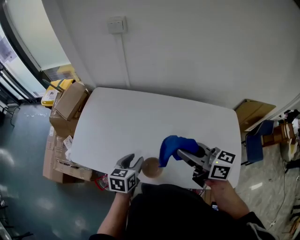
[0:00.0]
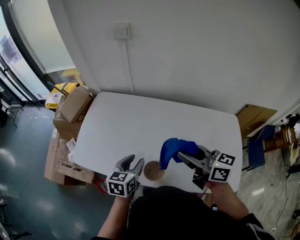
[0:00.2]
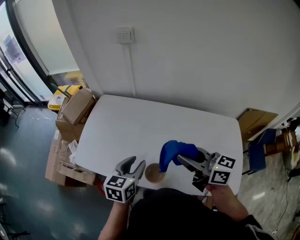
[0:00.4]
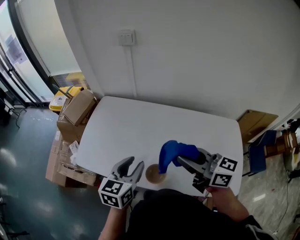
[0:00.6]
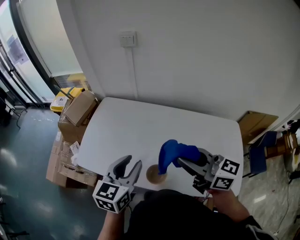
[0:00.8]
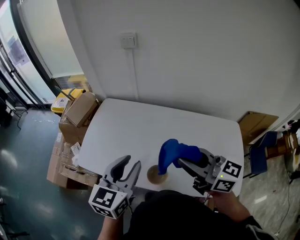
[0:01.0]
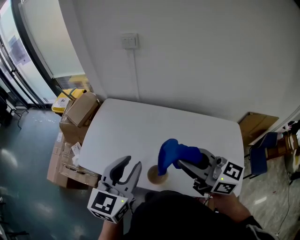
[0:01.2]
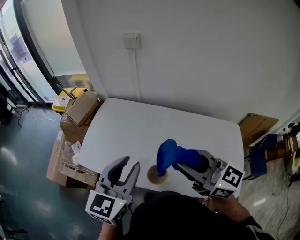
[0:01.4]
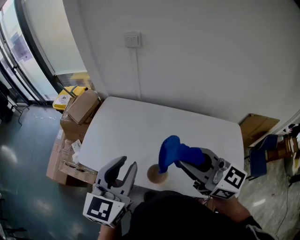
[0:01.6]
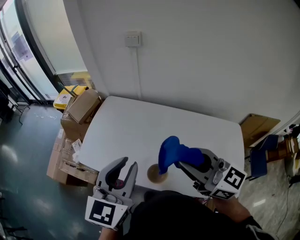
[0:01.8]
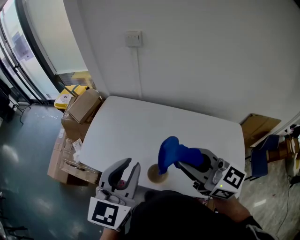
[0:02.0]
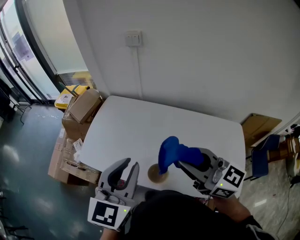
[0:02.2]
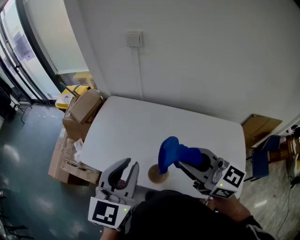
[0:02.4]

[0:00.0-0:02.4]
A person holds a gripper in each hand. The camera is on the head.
0:00.0 to 0:01.2: The left gripper heads upward, covering roughly 25 cm, and swivels approximately 30 degrees, while the right gripper shifts some 10 cm upward.
0:01.2 to 0:02.4: The grippers make only small movements.

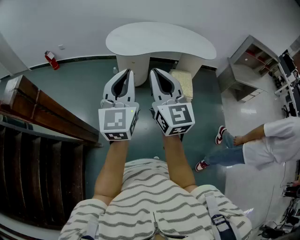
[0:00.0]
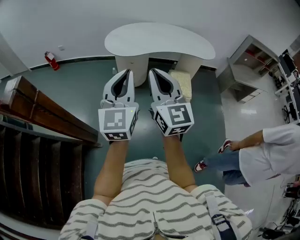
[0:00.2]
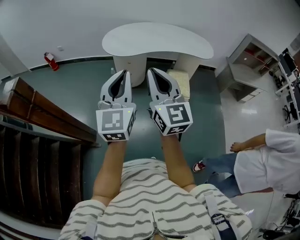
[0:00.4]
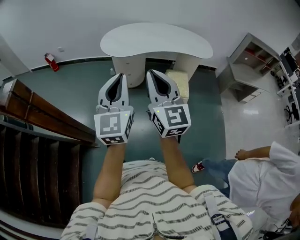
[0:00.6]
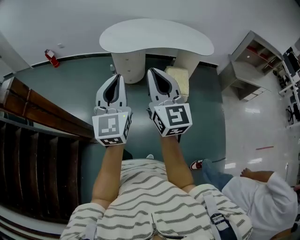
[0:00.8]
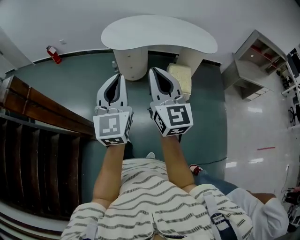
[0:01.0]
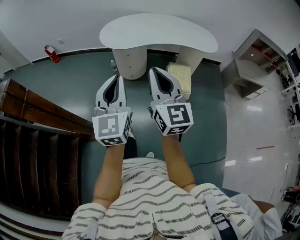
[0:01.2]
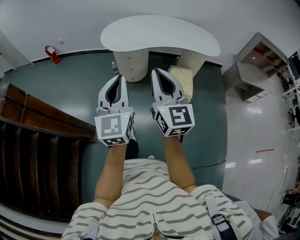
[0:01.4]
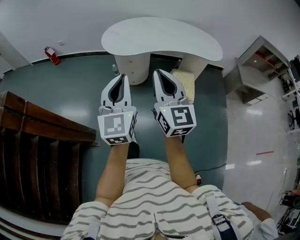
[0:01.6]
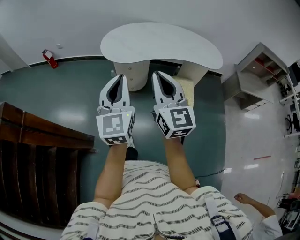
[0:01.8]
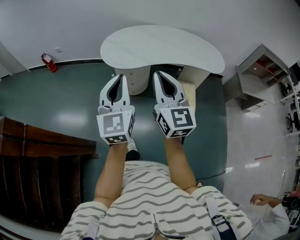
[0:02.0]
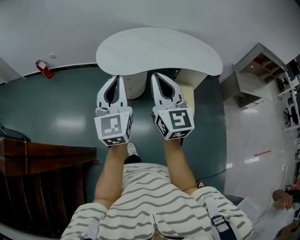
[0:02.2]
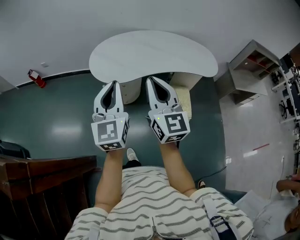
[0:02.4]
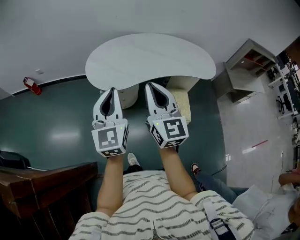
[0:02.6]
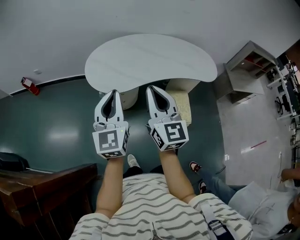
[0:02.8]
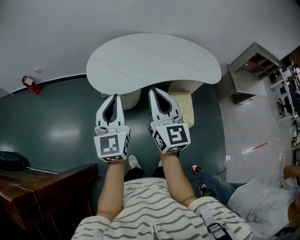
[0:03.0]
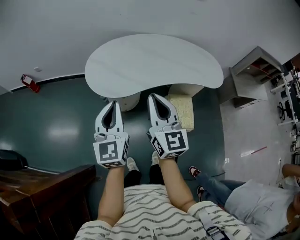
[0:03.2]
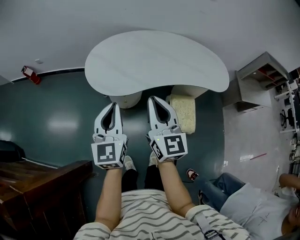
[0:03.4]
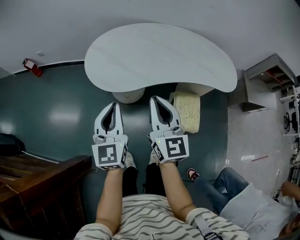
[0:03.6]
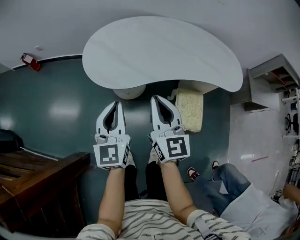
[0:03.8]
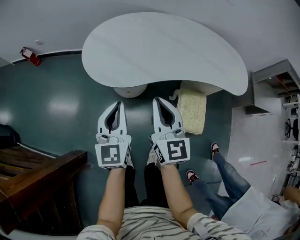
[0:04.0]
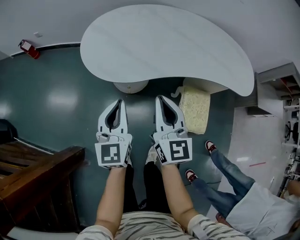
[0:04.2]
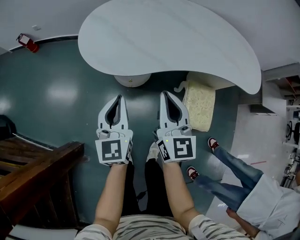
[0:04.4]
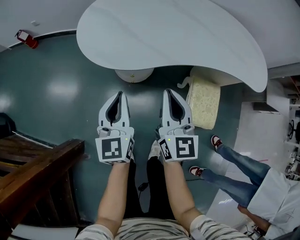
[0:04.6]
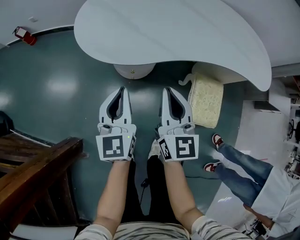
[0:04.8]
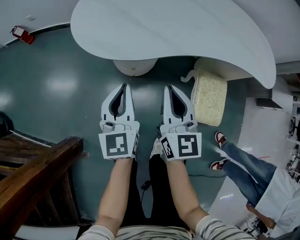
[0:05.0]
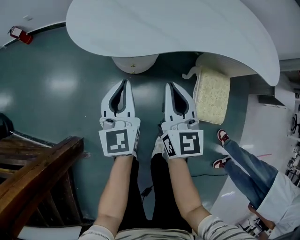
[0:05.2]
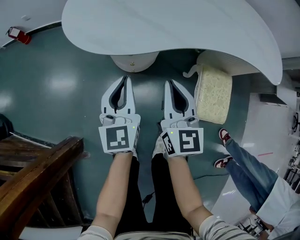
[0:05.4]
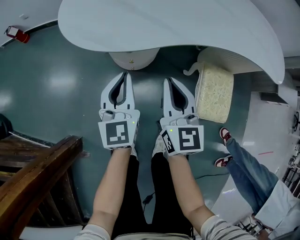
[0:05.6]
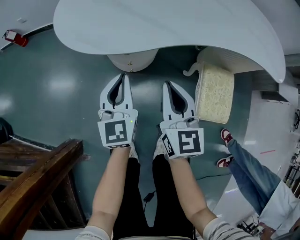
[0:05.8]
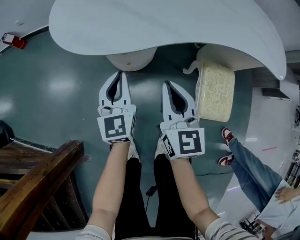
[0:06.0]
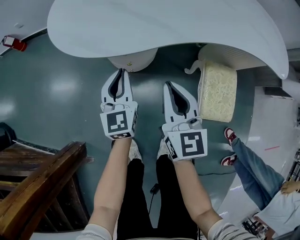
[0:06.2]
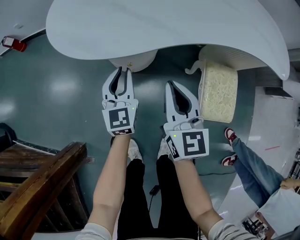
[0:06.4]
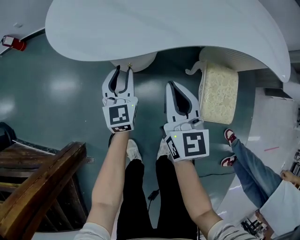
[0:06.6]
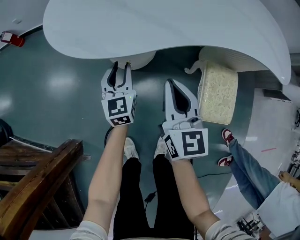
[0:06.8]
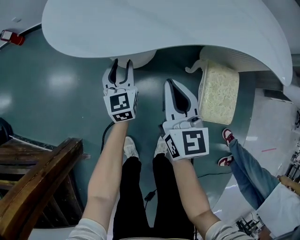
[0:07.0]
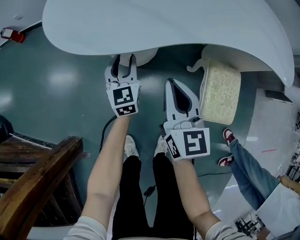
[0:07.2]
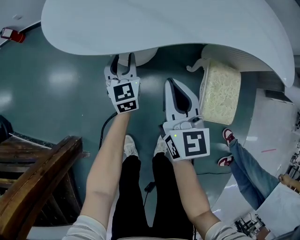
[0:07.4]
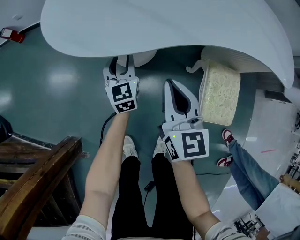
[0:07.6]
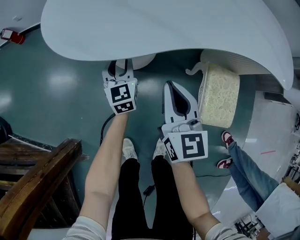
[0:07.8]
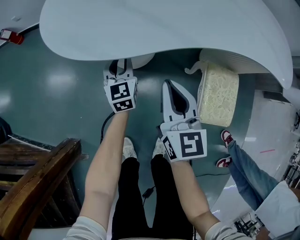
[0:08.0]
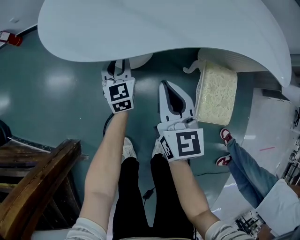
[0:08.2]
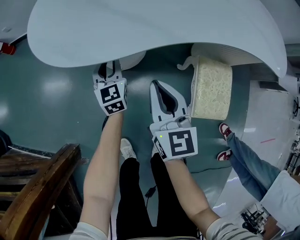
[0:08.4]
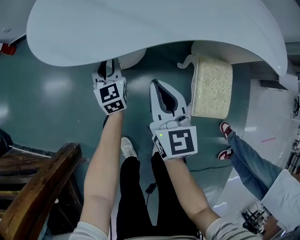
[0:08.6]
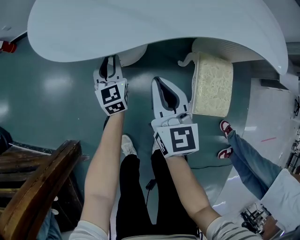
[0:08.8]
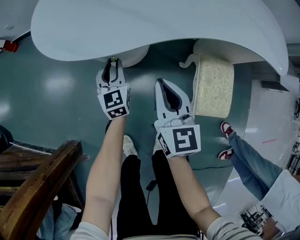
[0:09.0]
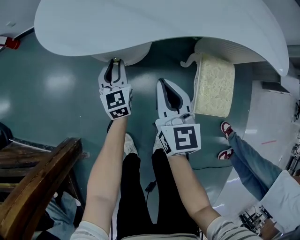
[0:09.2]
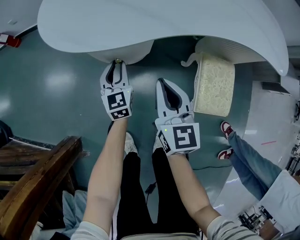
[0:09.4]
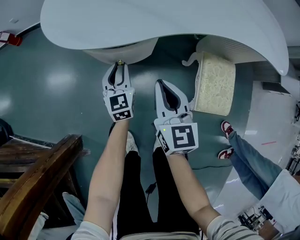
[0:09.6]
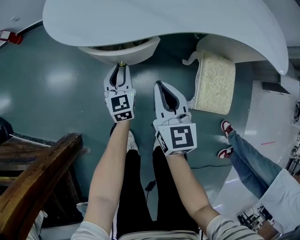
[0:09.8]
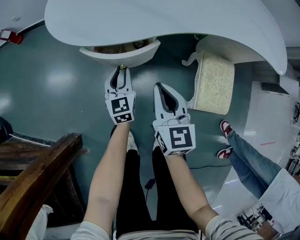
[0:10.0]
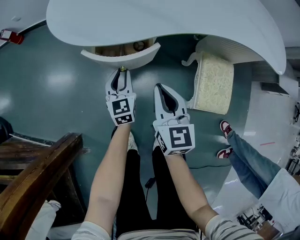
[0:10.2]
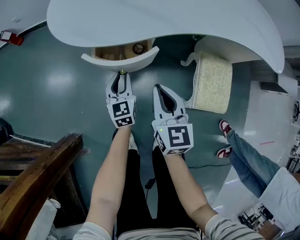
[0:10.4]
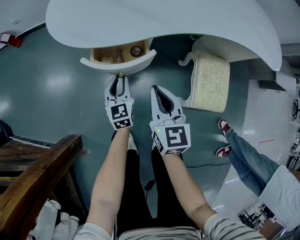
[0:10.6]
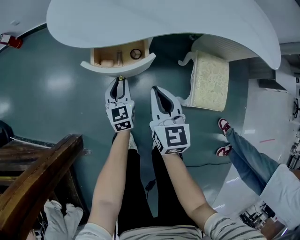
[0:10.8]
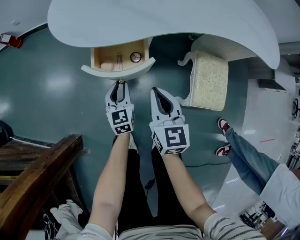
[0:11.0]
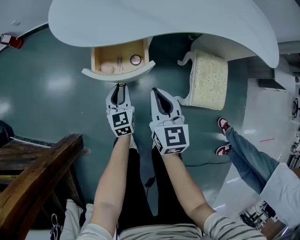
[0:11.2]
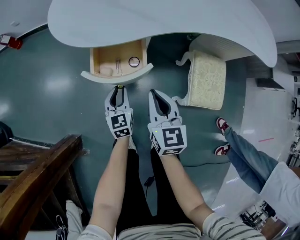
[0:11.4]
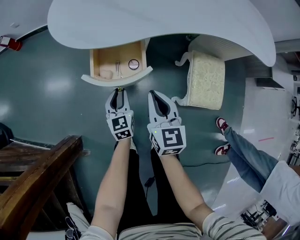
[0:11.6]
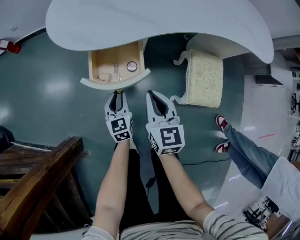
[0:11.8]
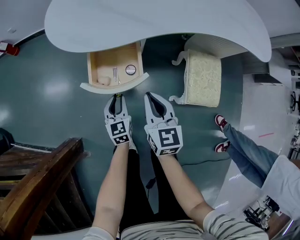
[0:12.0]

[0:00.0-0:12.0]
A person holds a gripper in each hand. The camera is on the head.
0:00.0 to 0:01.6: The right gripper heads to the right and forward, covering approximately 15 cm; the left gripper travels forward, to the right and downward by approximately 10 cm.
0:01.6 to 0:03.0: Both grippers move forward, approximately 30 cm.
0:03.0 to 0:04.4: Both grippers move downward, some 30 cm.
0:04.4 to 0:06.0: Both grippers travel together downward, approximately 20 cm.
0:06.0 to 0:07.6: The left gripper travels downward and forward by some 15 cm, and opens.
0:07.6 to 0:09.0: The grippers make only small movements.
0:09.0 to 0:10.4: The left gripper travels backward by about 10 cm. The right gripper shifts by some 5 cm.
0:10.4 to 0:12.0: The left gripper shifts approximately 10 cm backward.

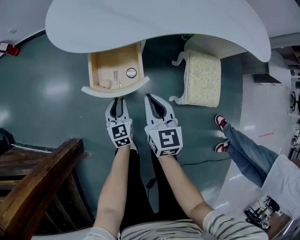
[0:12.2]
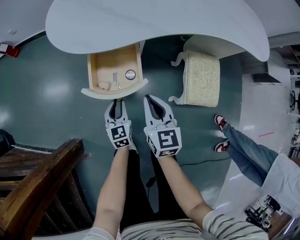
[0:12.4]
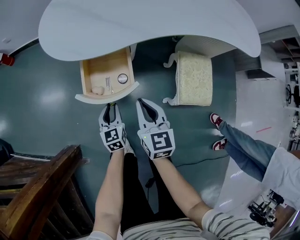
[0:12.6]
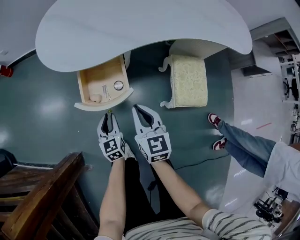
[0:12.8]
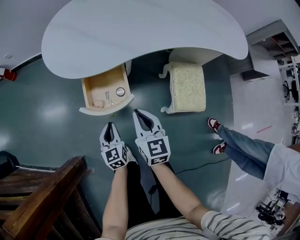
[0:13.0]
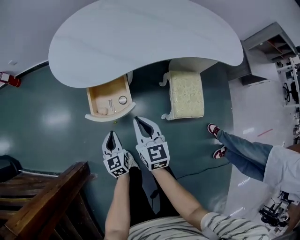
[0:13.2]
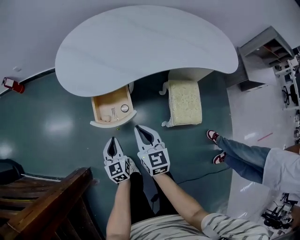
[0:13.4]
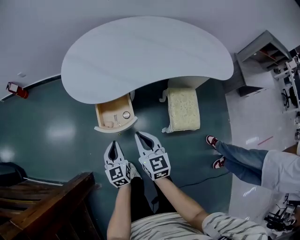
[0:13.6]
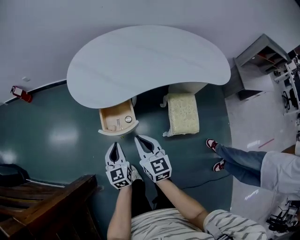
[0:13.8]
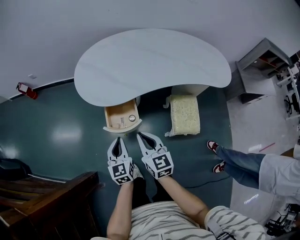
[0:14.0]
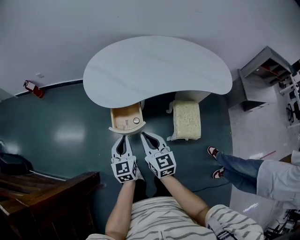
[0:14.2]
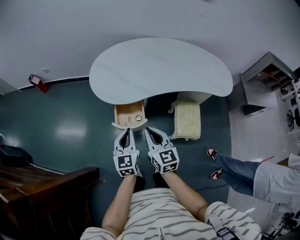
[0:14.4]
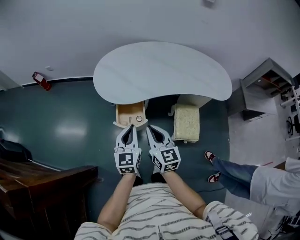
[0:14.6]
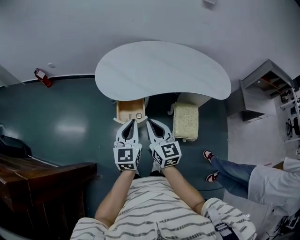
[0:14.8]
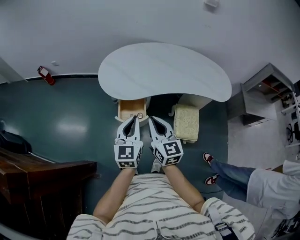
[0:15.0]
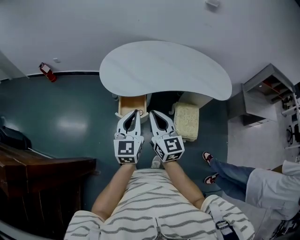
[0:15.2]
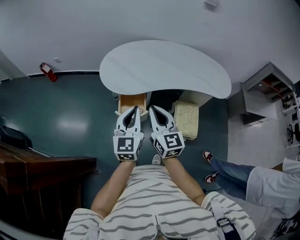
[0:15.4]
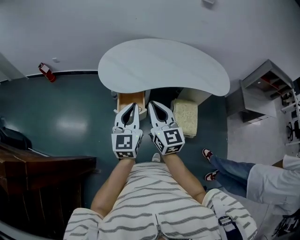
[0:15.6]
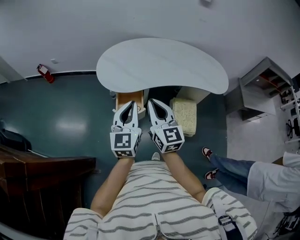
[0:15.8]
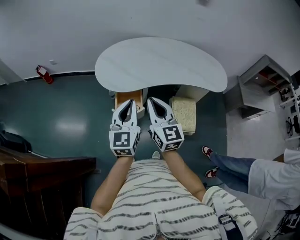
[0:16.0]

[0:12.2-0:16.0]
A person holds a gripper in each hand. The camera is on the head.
0:12.2 to 0:13.4: The grippers both shift upward by about 15 cm. The left gripper closes its fingers.
0:13.4 to 0:14.8: Both grippers move upward, some 30 cm.
0:14.8 to 0:16.0: The grippers both shift upward by some 10 cm.

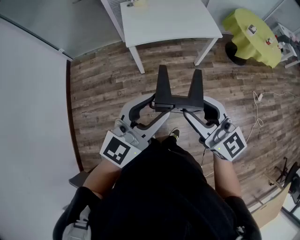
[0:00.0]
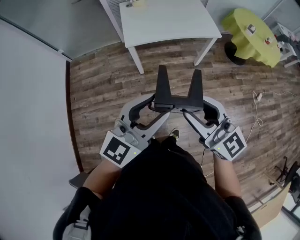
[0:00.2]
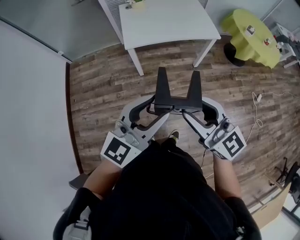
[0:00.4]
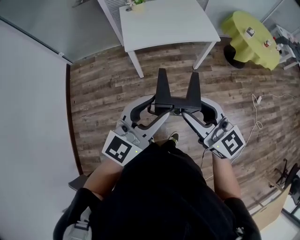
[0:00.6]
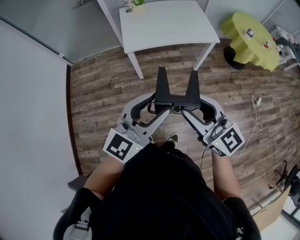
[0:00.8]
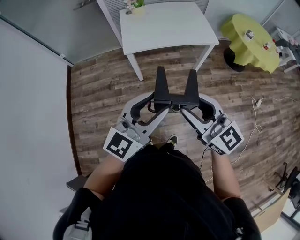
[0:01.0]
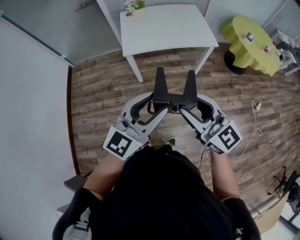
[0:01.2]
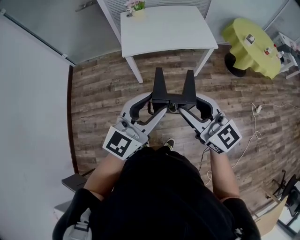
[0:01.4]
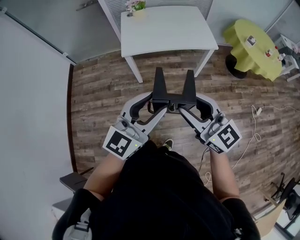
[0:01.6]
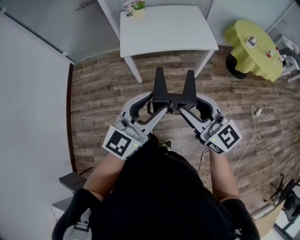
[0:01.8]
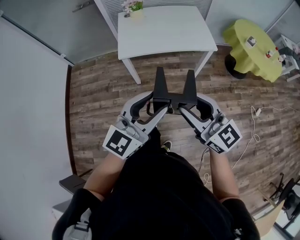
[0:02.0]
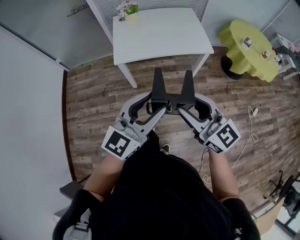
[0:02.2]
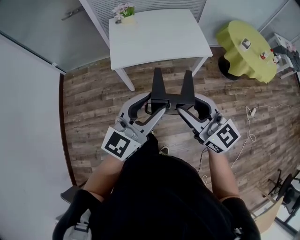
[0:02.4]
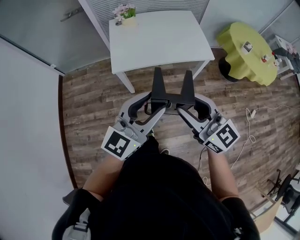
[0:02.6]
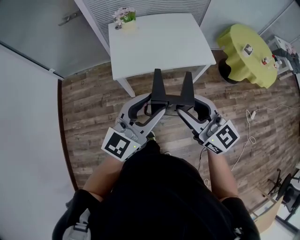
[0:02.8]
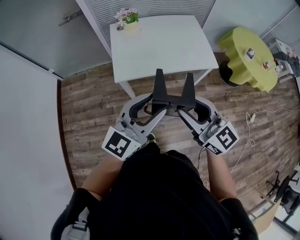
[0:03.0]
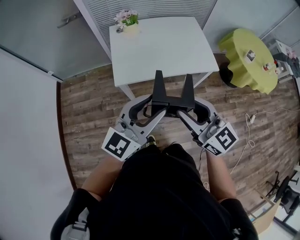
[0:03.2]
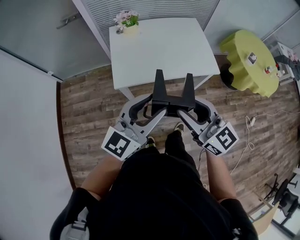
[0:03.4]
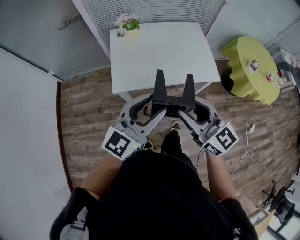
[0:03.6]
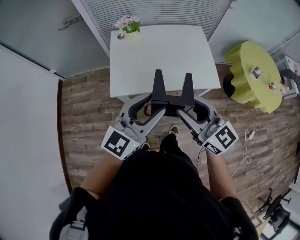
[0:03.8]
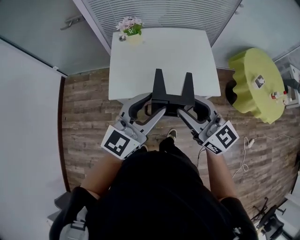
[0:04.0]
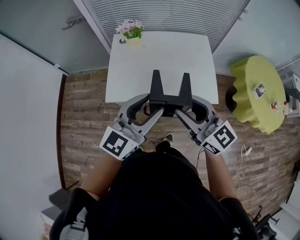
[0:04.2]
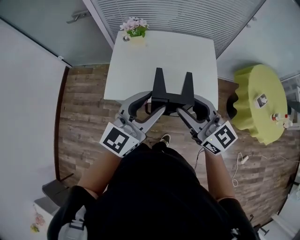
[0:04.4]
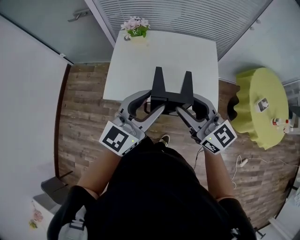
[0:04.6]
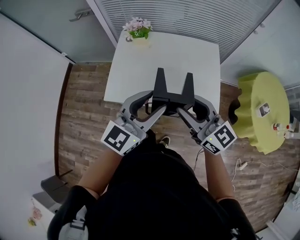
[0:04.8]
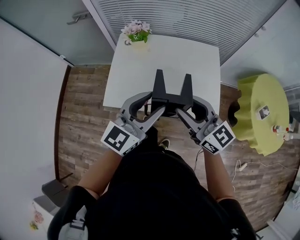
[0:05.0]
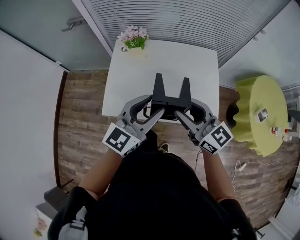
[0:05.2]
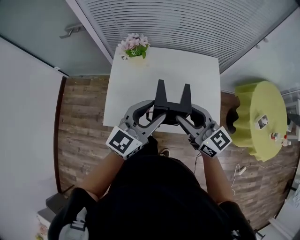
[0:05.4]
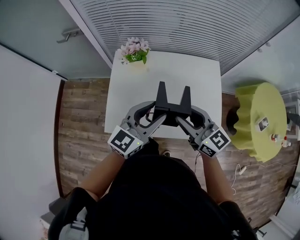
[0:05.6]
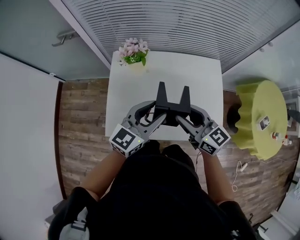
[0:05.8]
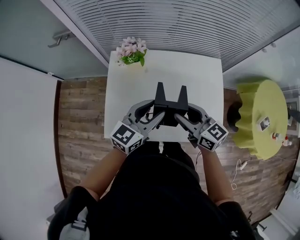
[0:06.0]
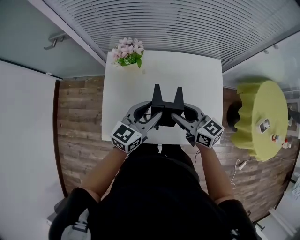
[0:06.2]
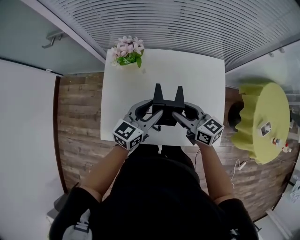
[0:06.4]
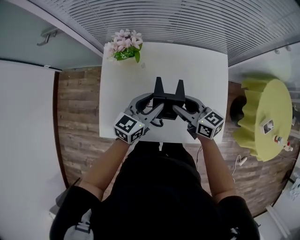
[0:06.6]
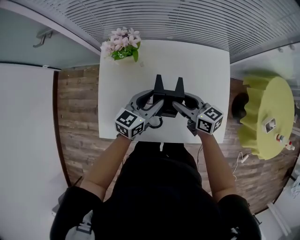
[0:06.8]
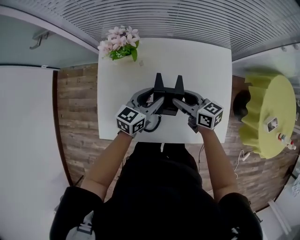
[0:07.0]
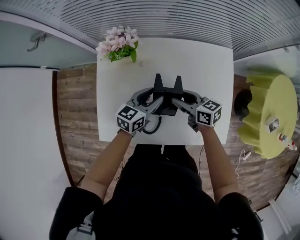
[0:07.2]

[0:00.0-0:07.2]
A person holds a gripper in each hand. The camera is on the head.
0:00.0 to 0:01.4: The two grippers go about 5 cm to the right.
0:01.4 to 0:02.8: Both grippers travel together forward, roughly 20 cm.
0:02.8 to 0:04.4: Both grippers move forward and to the right, approximately 30 cm.
0:04.4 to 0:05.8: The left gripper moves forward, roughly 25 cm, while the right gripper heads forward and downward, covering about 25 cm.
0:05.8 to 0:07.2: Both grippers move downward and forward, roughly 25 cm. The right gripper swivels some 30 degrees, while the left gripper changes its angle by some 20 degrees.
